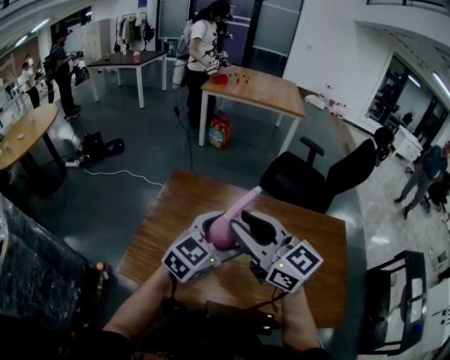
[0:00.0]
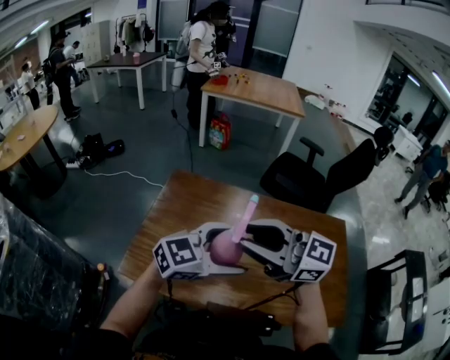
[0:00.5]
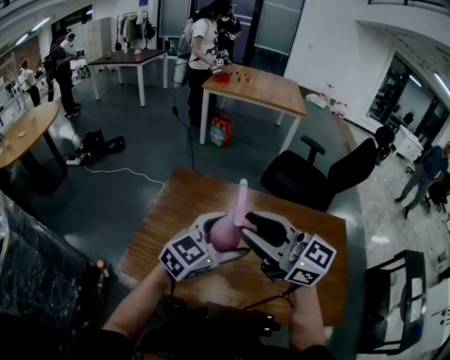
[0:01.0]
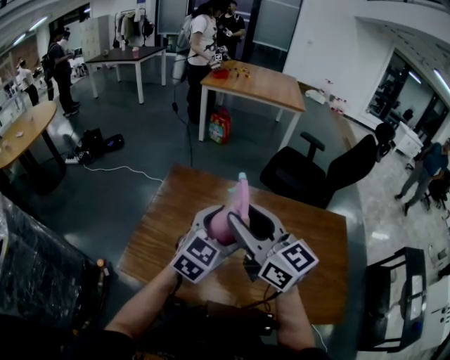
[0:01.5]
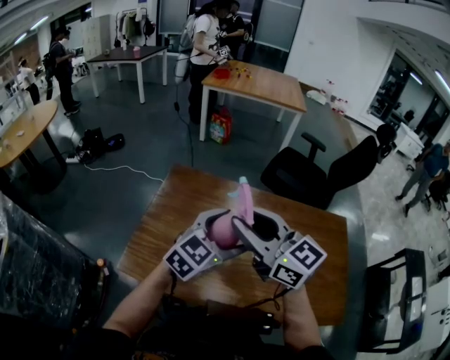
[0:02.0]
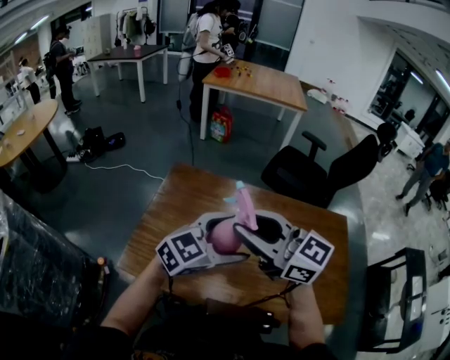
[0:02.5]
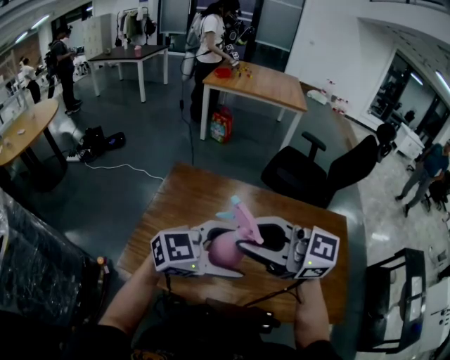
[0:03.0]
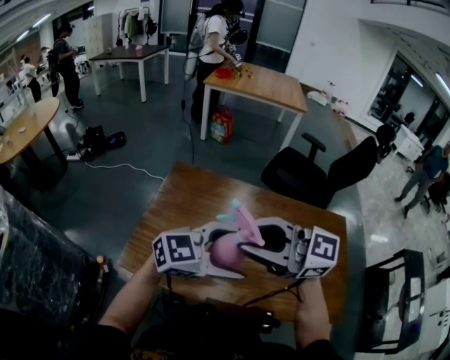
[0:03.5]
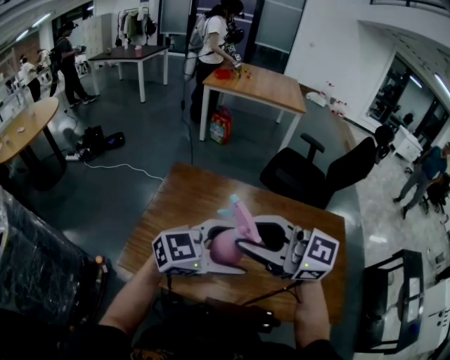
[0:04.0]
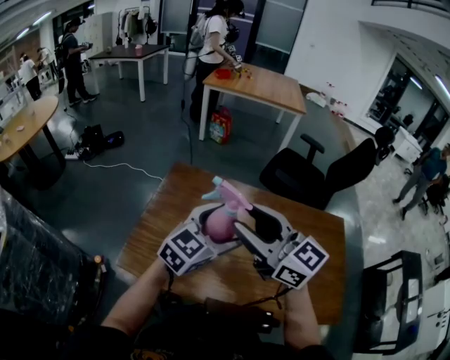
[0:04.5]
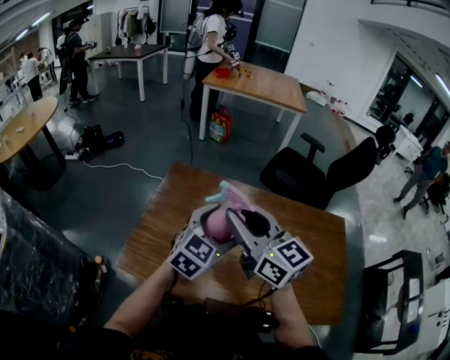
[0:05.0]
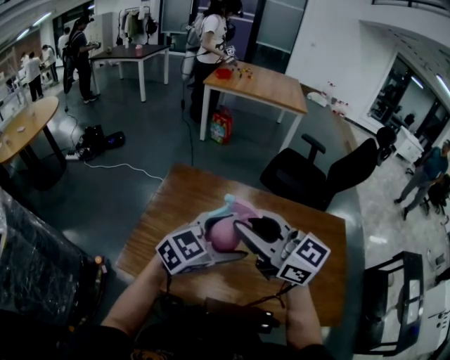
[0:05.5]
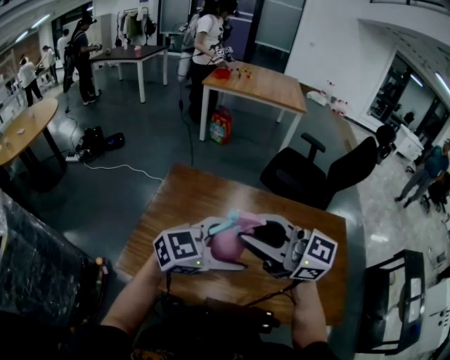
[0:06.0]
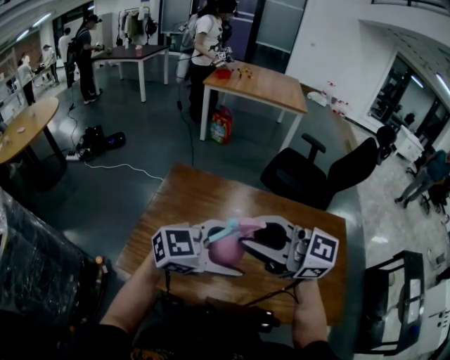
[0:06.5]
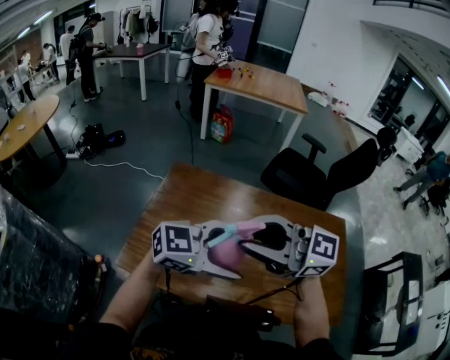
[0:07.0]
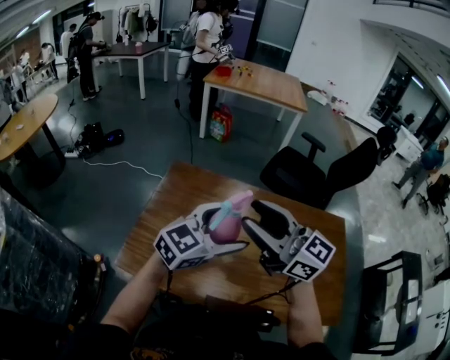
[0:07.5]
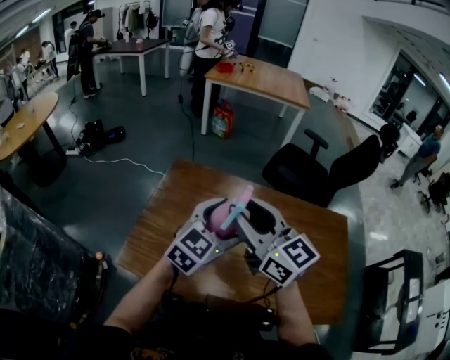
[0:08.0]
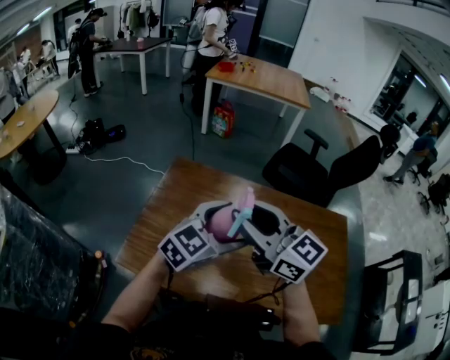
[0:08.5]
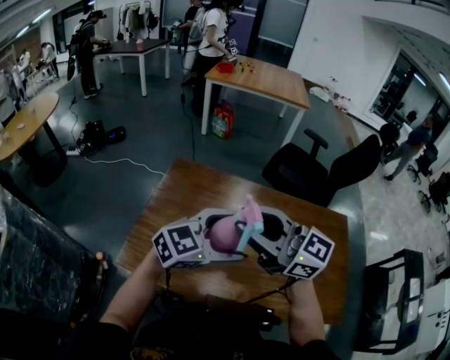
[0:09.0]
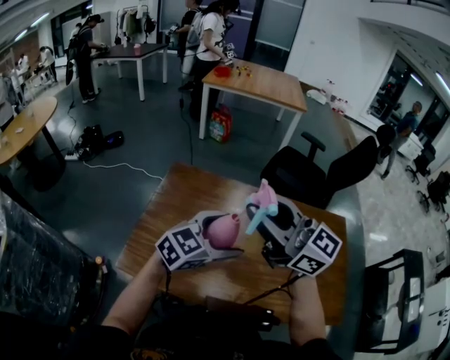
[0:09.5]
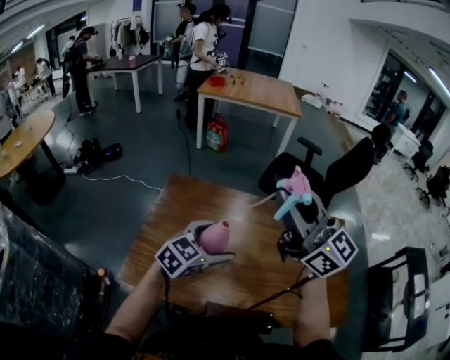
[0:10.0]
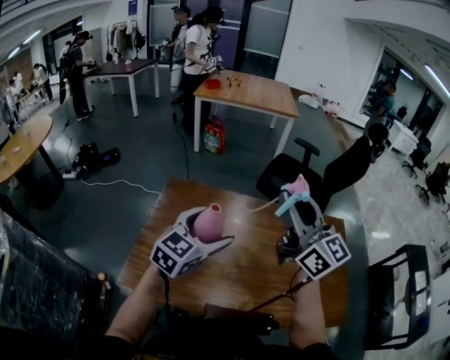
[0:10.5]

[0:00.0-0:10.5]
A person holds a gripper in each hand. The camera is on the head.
0:02.0 to 0:04.0: The right gripper ends up some 5 cm from where it was, and changes its angle by about 30 degrees. Meanwhile the left gripper shifts by some 10 cm, and changes its angle by some 30 degrees.
0:06.5 to 0:08.5: The right gripper moves roughly 5 cm, and changes its angle by about 20 degrees. The left gripper ends up roughly 10 cm from where it was, and changes its angle by some 30 degrees.
0:08.5 to 0:10.5: The left gripper ends up approximately 5 cm from where it was, while the right gripper ends up some 15 cm from where it was, and changes its angle by approximately 30 degrees.

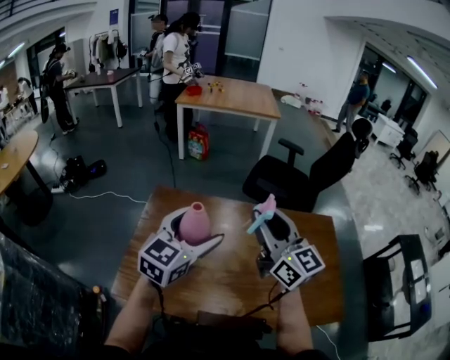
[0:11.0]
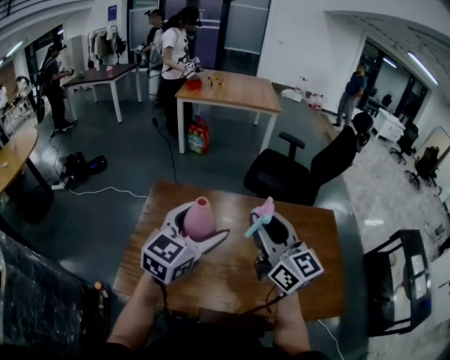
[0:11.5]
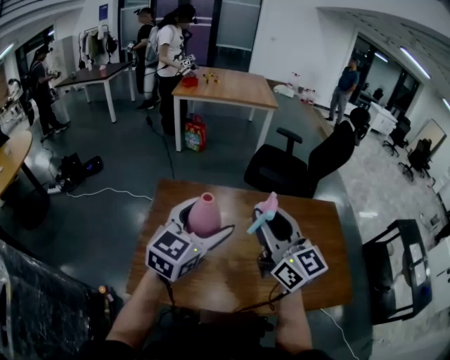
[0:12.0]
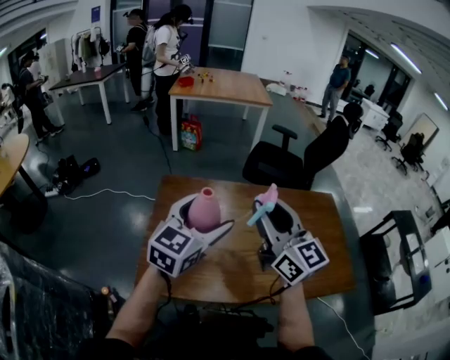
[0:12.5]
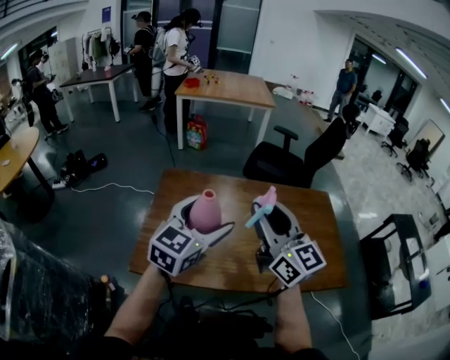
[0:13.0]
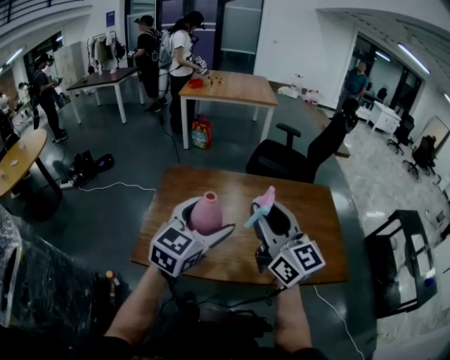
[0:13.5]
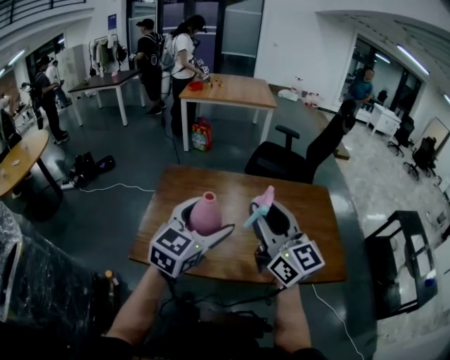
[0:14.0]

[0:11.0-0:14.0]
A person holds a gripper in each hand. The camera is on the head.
0:11.0 to 0:12.5: The left gripper shifts by roughly 5 cm. Meanwhile the right gripper heads to the left and backward, covering some 10 cm.
0:12.5 to 0:14.0: Both grippers travel together backward and to the right, some 10 cm.

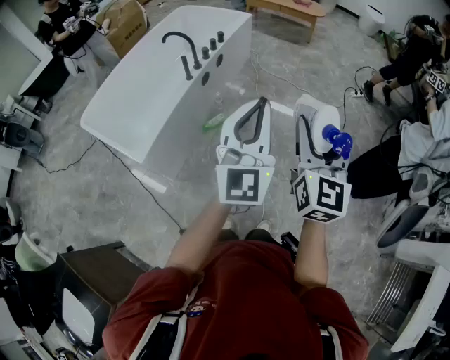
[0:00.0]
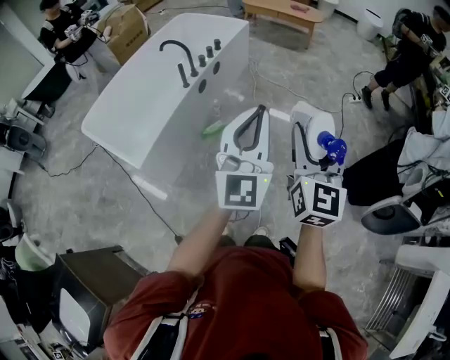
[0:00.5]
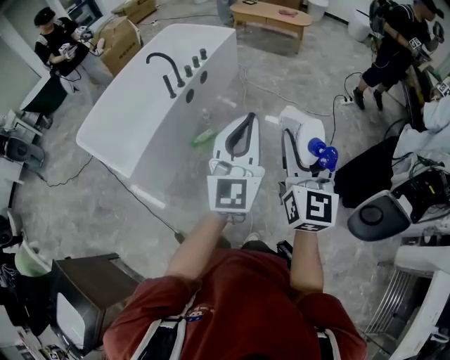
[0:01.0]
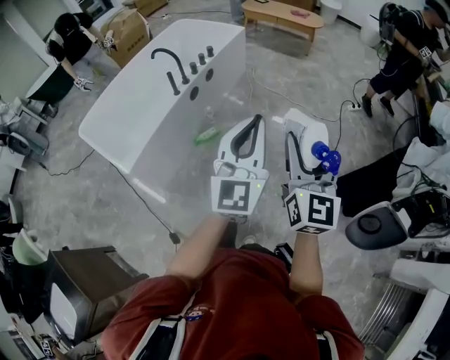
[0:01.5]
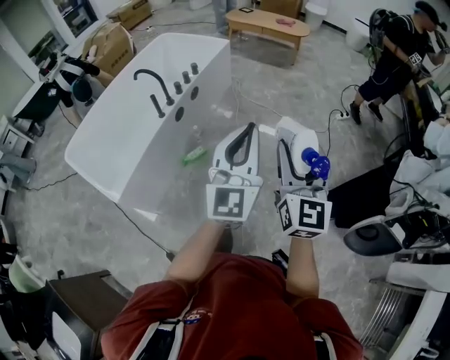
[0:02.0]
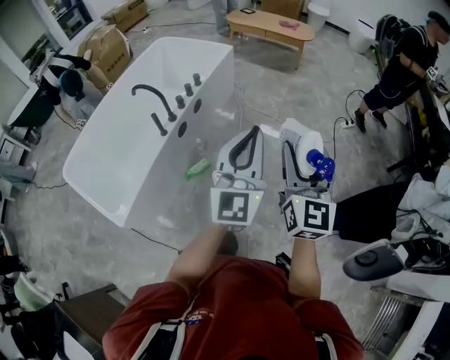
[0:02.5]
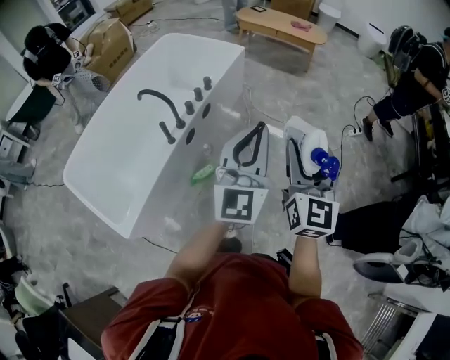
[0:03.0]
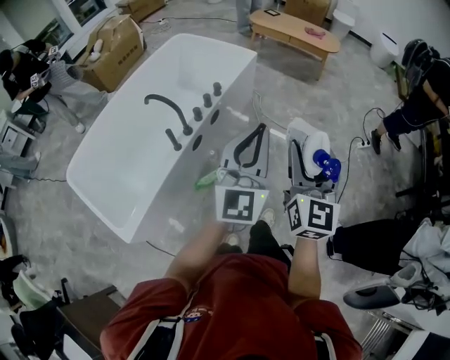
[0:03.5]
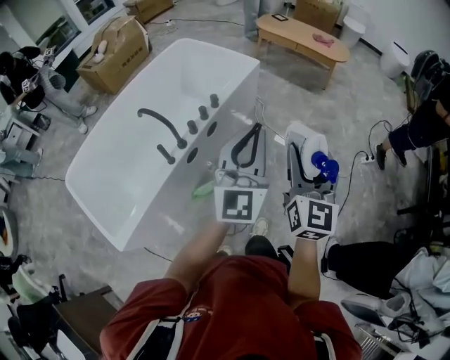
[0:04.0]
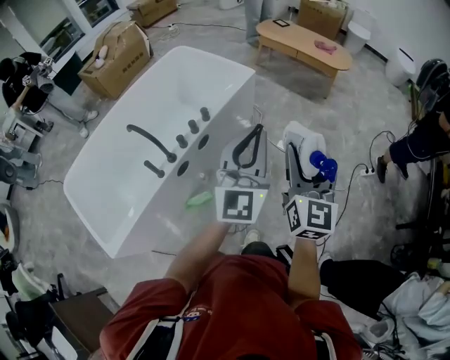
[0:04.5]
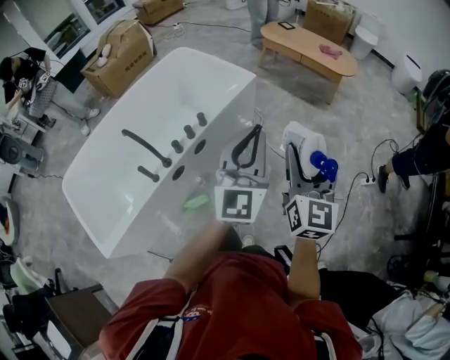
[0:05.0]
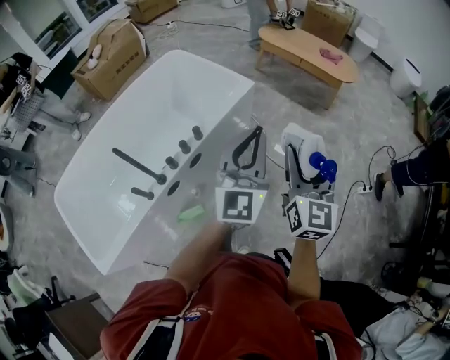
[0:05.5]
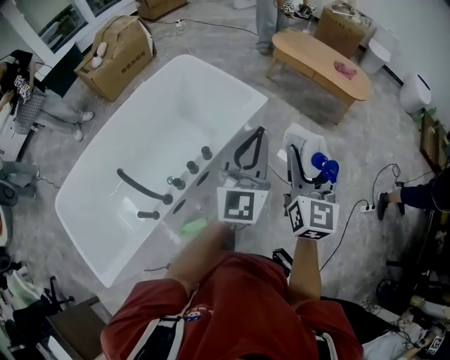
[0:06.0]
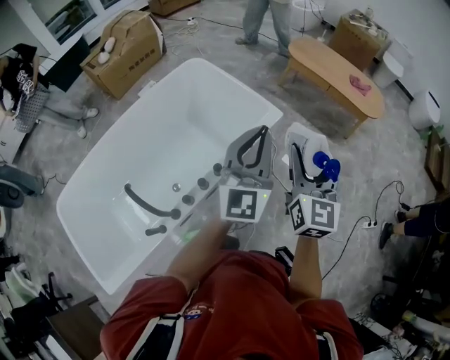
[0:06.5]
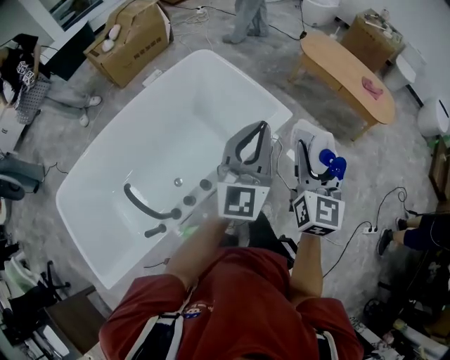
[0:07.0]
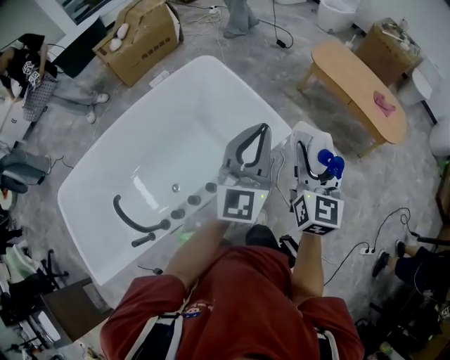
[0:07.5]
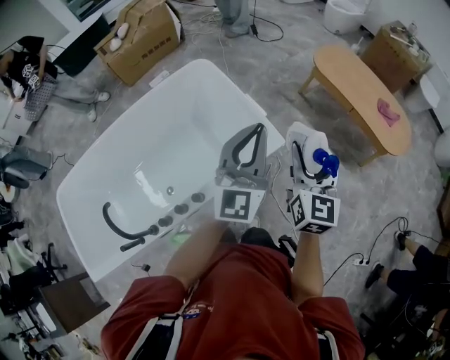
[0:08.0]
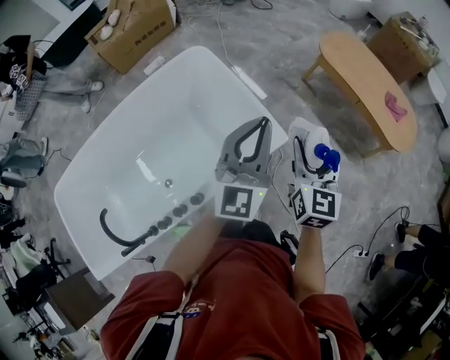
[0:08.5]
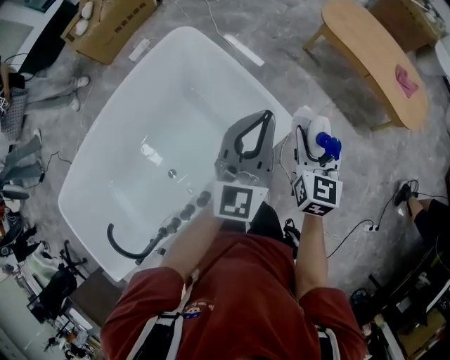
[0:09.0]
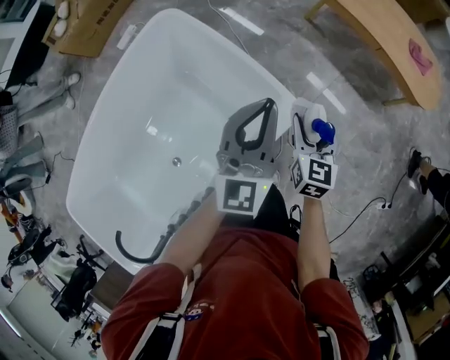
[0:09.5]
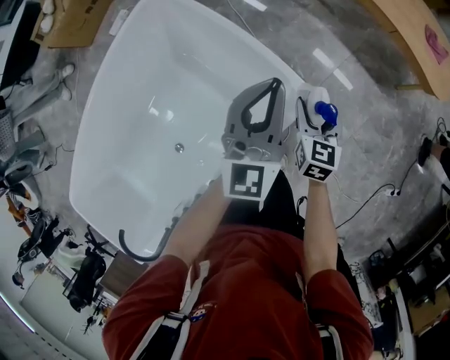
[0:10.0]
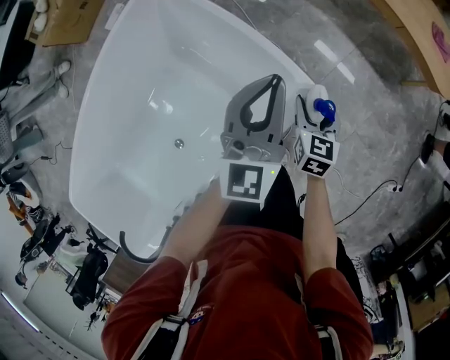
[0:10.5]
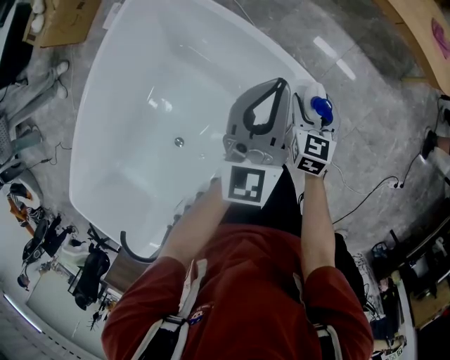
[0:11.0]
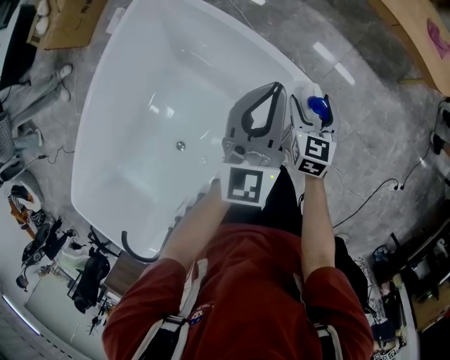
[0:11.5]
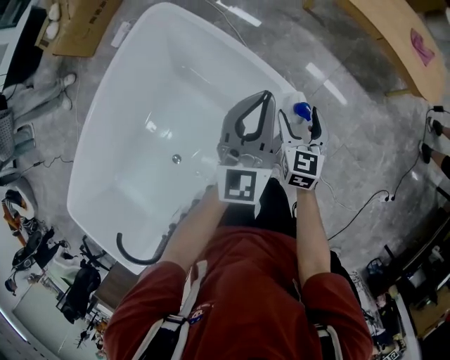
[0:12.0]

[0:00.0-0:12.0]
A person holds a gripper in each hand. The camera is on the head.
0:00.0 to 0:02.0: Both grippers travel together forward and to the right, approximately 15 cm.
0:02.0 to 0:04.0: Both grippers travel together forward, roughly 40 cm.
0:04.0 to 0:06.0: The two grippers go some 35 cm forward.
0:06.0 to 0:08.0: Both grippers move forward, roughly 35 cm.
0:08.0 to 0:10.0: Both grippers travel together downward and forward, about 35 cm. The right gripper points its fingers about 30 degrees further downward.
0:10.0 to 0:12.0: The right gripper travels downward and back again, some 5 cm each way.

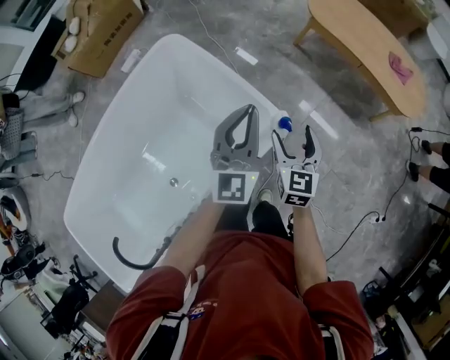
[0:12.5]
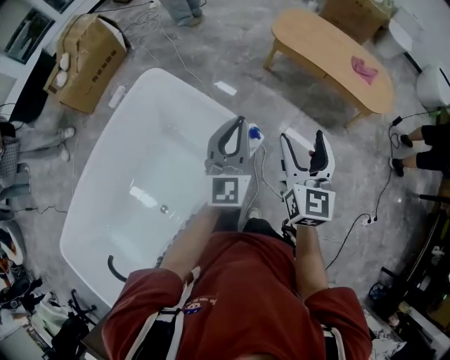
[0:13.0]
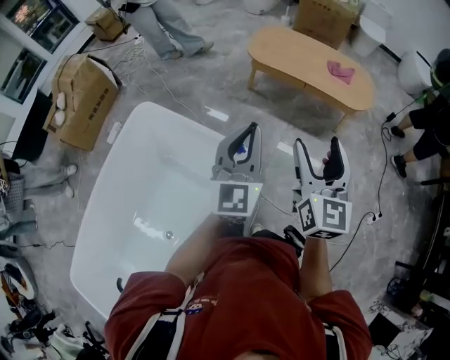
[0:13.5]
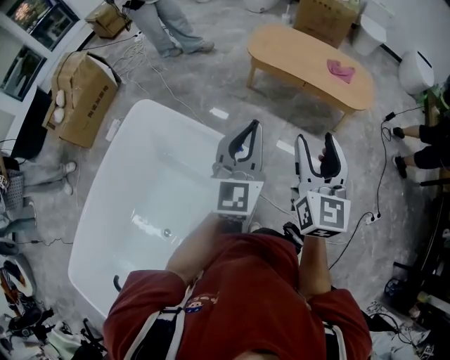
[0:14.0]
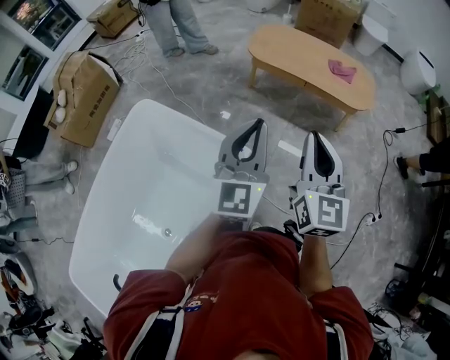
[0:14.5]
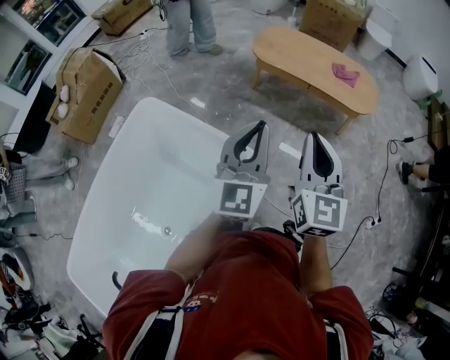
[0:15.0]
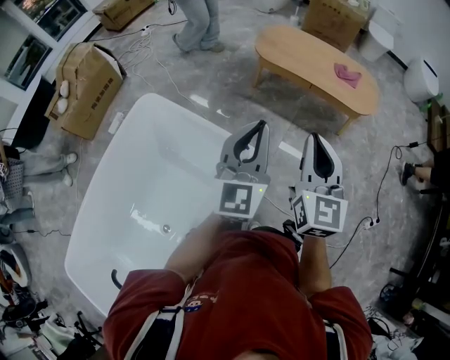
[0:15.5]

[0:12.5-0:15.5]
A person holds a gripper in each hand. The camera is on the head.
0:12.5 to 0:14.0: The right gripper moves upward and to the right, approximately 30 cm, and turns by some 30 degrees, while the left gripper shifts some 20 cm to the right and upward.
0:14.0 to 0:15.5: The right gripper closes its fingers.
